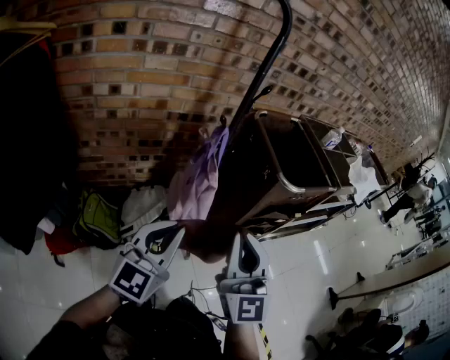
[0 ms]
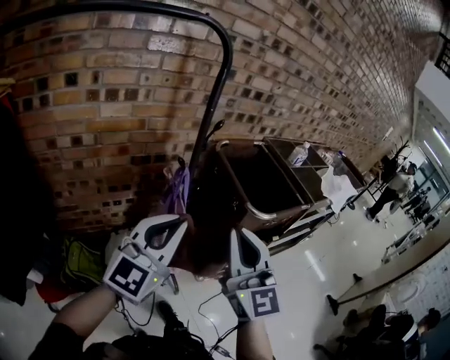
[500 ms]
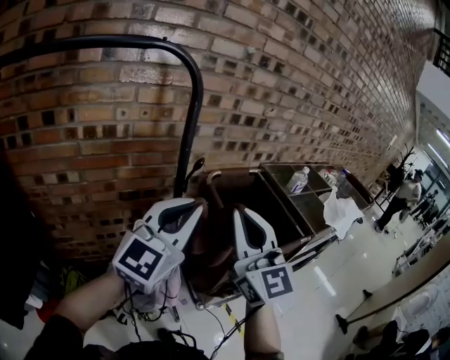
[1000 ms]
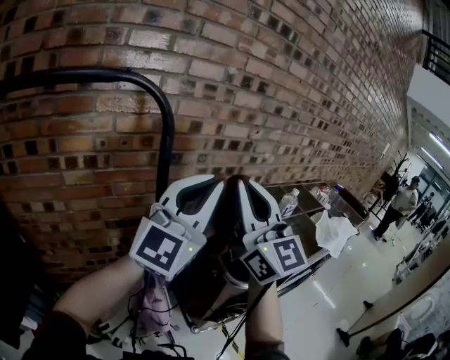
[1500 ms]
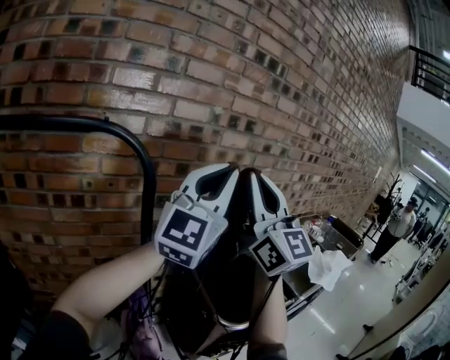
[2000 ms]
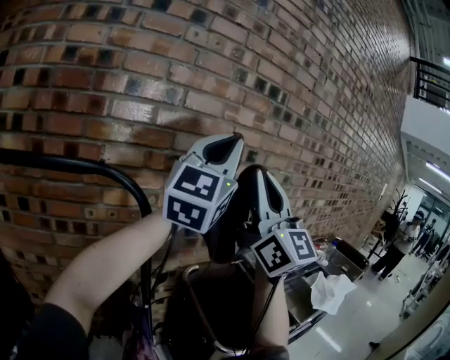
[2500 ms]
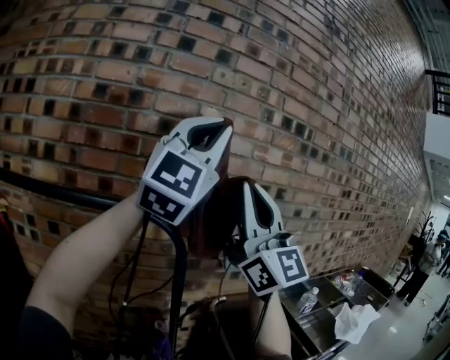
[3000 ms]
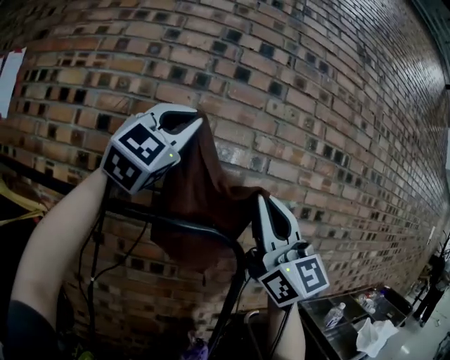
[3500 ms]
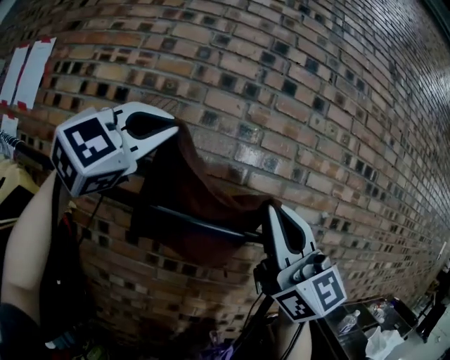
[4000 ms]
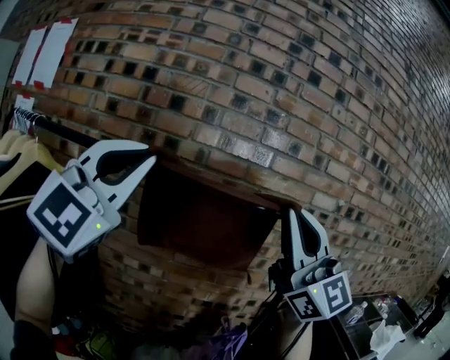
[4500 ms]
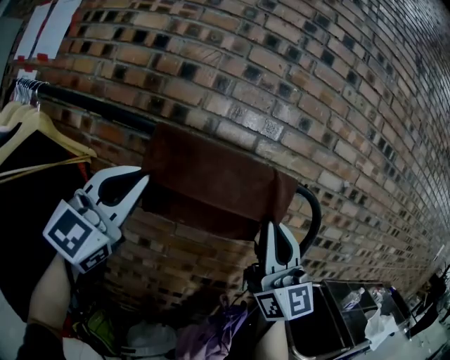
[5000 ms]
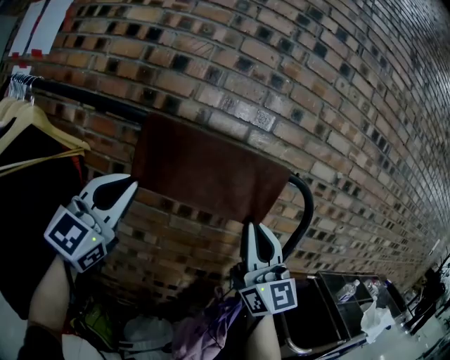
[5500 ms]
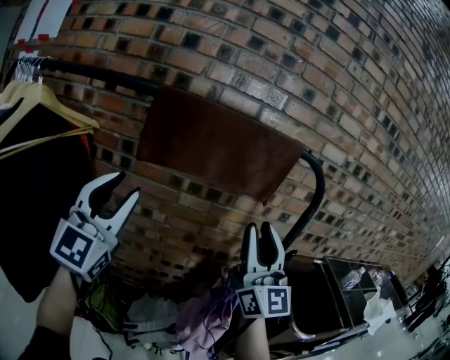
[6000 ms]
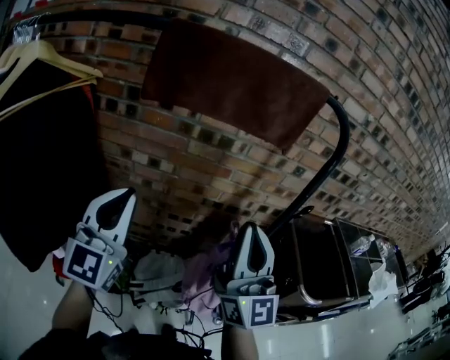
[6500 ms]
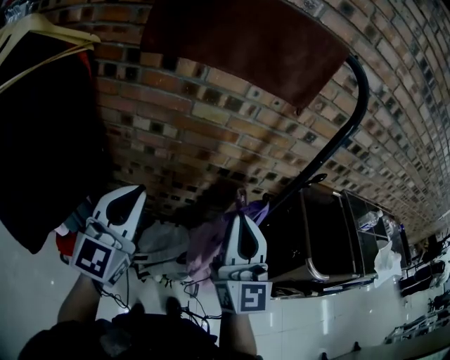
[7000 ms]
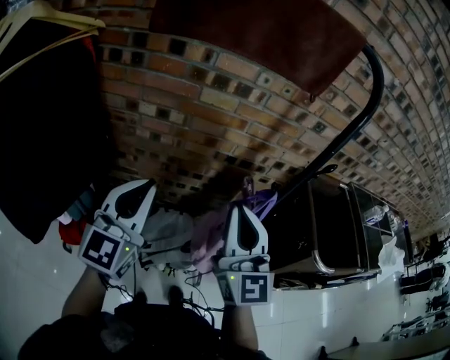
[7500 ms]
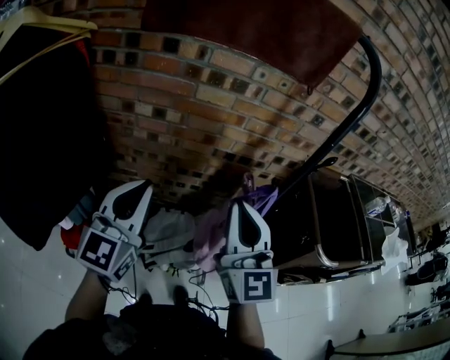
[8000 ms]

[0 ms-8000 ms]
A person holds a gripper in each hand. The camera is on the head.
0 ms to 2000 ms: The two grippers travel together, forward, about 40 cm. Both grippers move upward, some 40 cm. The left gripper swivels some 30 degrees. The right gripper swivels some 20 degrees.
2000 ms to 4000 ms: The right gripper moves about 35 cm, and changes its angle by some 30 degrees, while the left gripper changes place by roughly 50 cm, and rolls clockwise, seen from behind, by approximately 40 degrees.
4000 ms to 6000 ms: Both grippers move downward, about 30 cm. The left gripper swivels about 30 degrees, and opens up. Meanwhile the right gripper rotates roughly 20 degrees, and opens up.
6000 ms to 8000 ms: Both grippers travel together downward, about 20 cm. The right gripper changes its angle by roughly 20 degrees, and closes its fingers. The left gripper swivels some 20 degrees, and closes up.

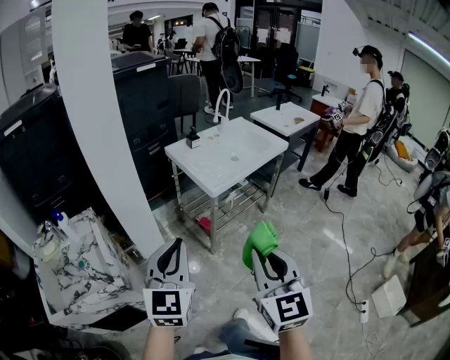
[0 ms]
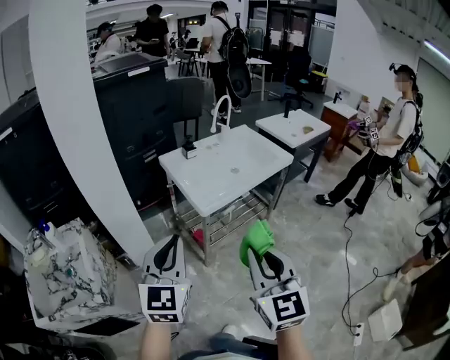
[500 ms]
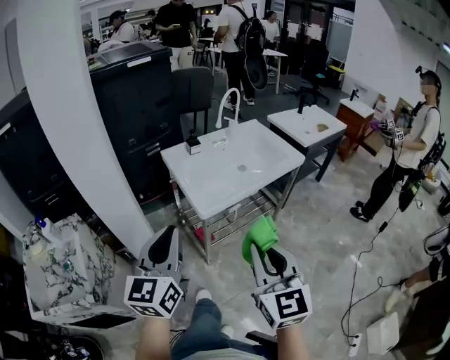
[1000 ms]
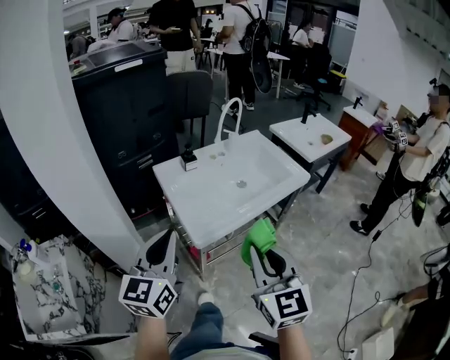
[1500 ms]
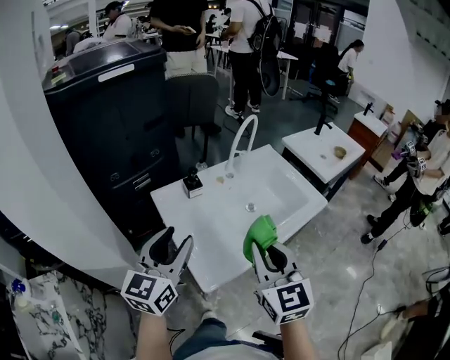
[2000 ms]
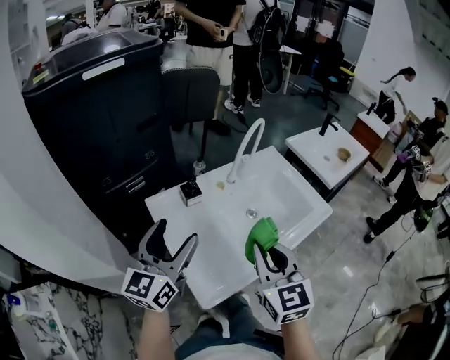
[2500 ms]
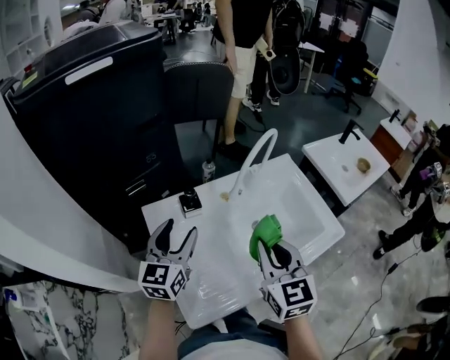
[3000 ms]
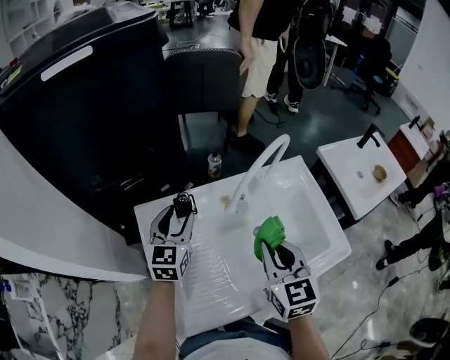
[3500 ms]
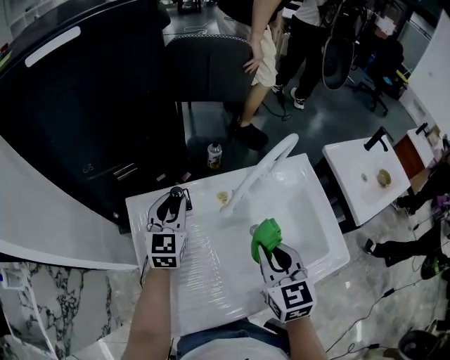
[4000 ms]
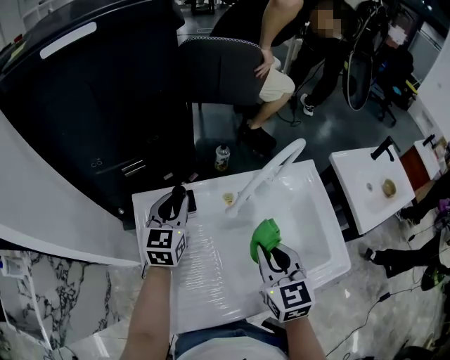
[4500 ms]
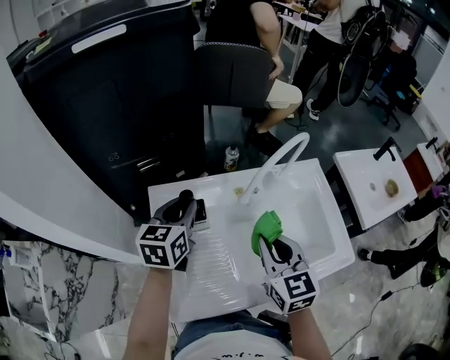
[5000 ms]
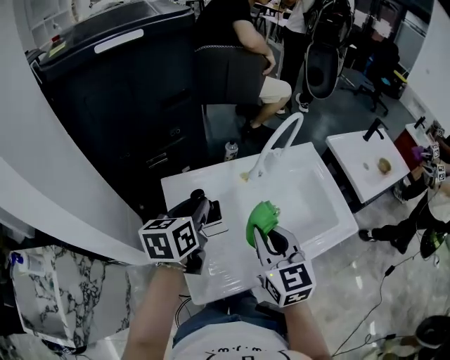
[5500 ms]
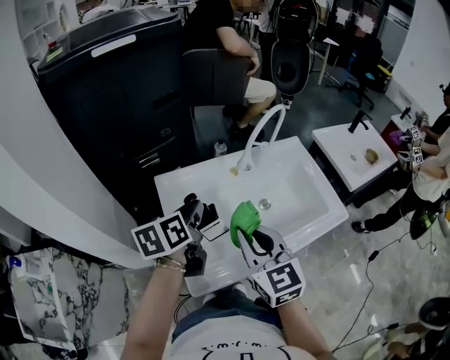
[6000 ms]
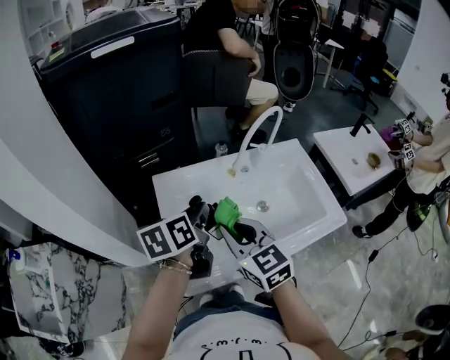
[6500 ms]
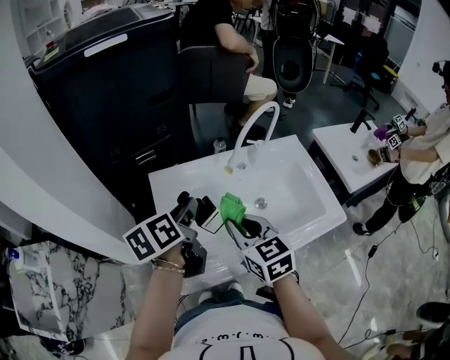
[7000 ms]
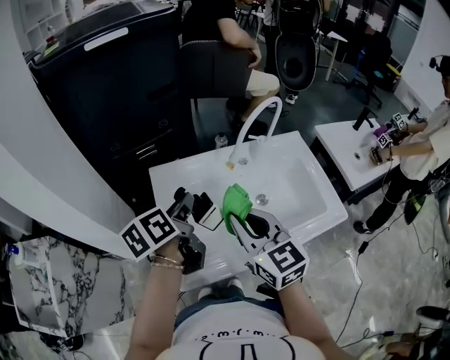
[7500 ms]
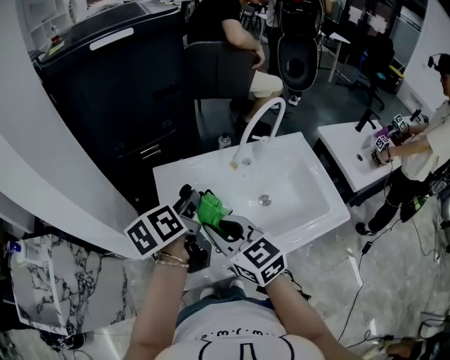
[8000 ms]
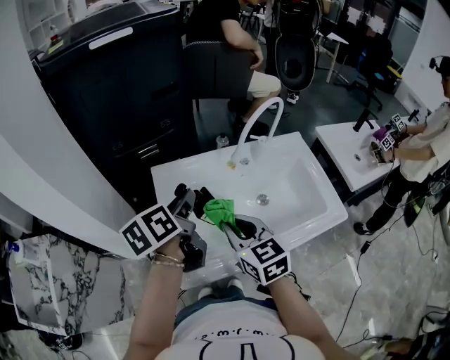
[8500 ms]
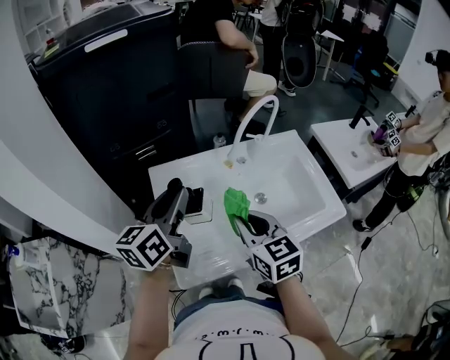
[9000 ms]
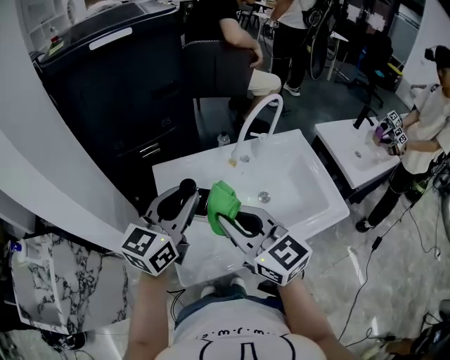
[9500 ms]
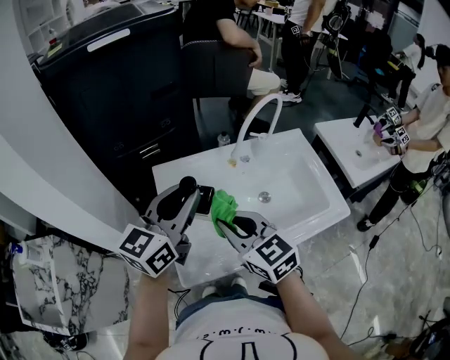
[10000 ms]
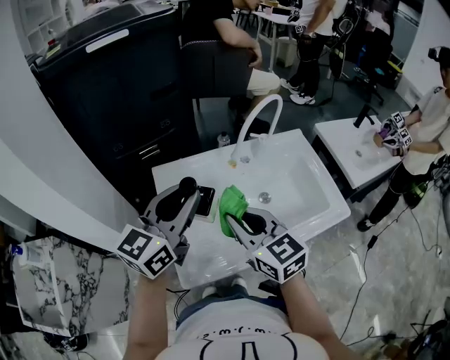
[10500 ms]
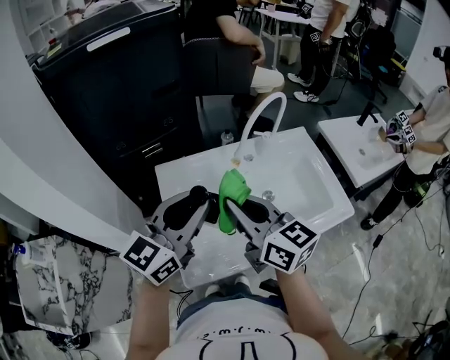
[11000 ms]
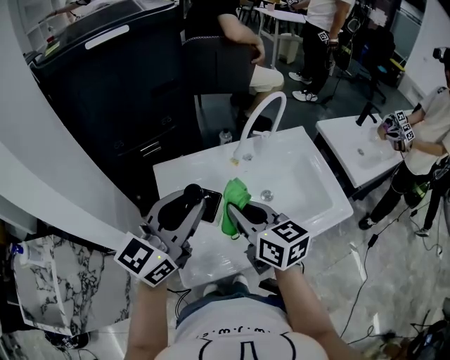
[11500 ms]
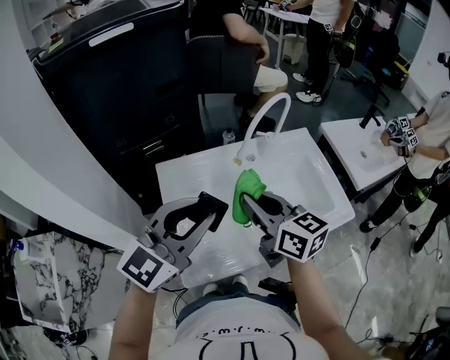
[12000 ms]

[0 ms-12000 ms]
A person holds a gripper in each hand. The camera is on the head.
0 ms to 2000 ms: The two grippers travel together, forward, roughly 50 cm. The left gripper opens up.
2000 ms to 4000 ms: The grippers both shift forward and downward by approximately 30 cm. The left gripper turns by roughly 30 degrees, and opens and closes again; the right gripper changes its angle by approximately 20 degrees.
4000 ms to 6000 ms: The left gripper heads backward and upward, covering about 20 cm, and rotates around the line of its fingers by some 40 degrees, counterclockwise from behind, while the right gripper heads to the left, backward and upward, covering some 20 cm.
6000 ms to 8000 ms: The right gripper is displaced to the left by about 5 cm, and swivels some 20 degrees.
8000 ms to 10000 ms: The left gripper moves upward, roughly 10 cm, and twists some 40 degrees clockwise, seen from behind. The right gripper goes upward and returns, some 5 cm each way.
10000 ms to 12000 ms: The left gripper shifts by some 5 cm, and swivels approximately 20 degrees. The right gripper travels forward and to the right by about 10 cm, and rotates roughly 20 degrees.

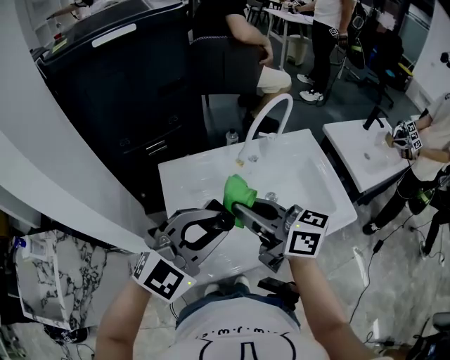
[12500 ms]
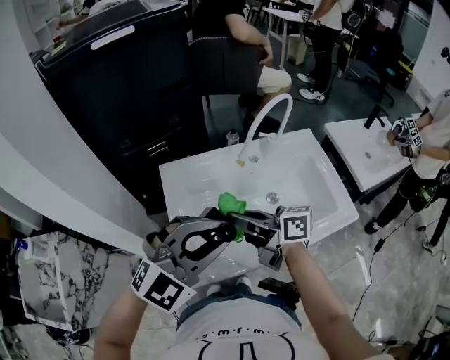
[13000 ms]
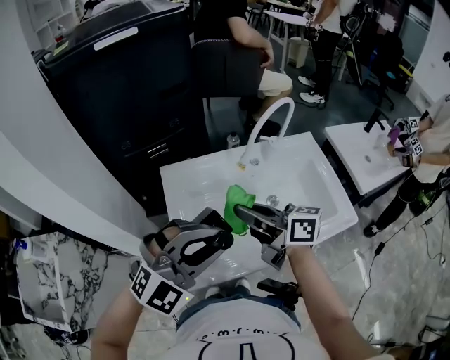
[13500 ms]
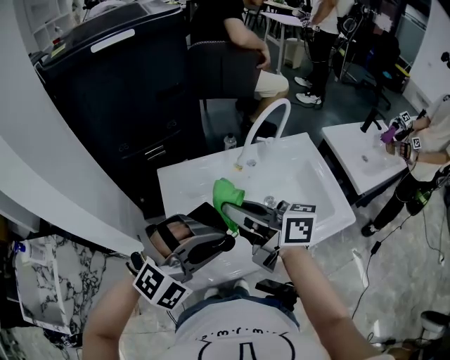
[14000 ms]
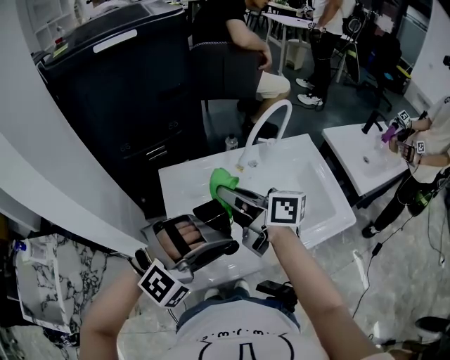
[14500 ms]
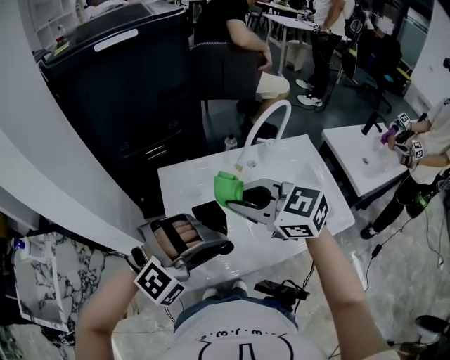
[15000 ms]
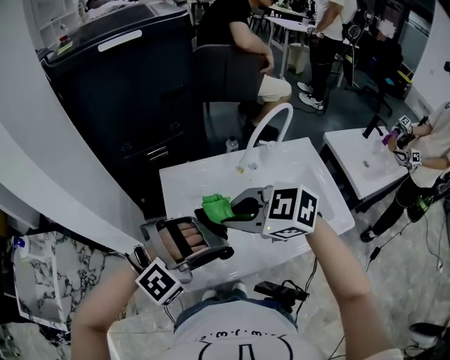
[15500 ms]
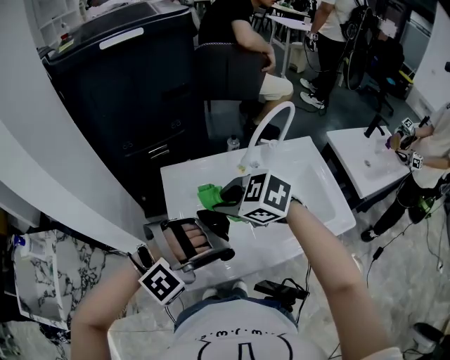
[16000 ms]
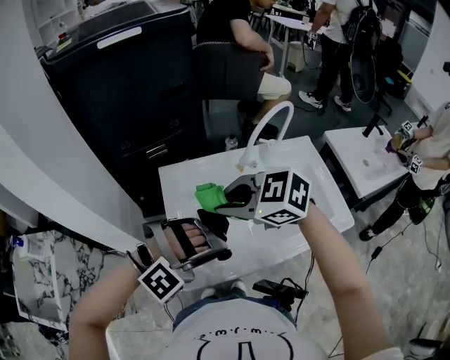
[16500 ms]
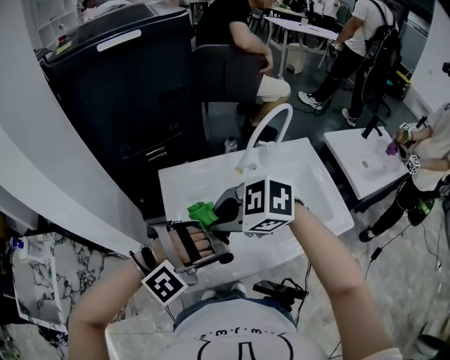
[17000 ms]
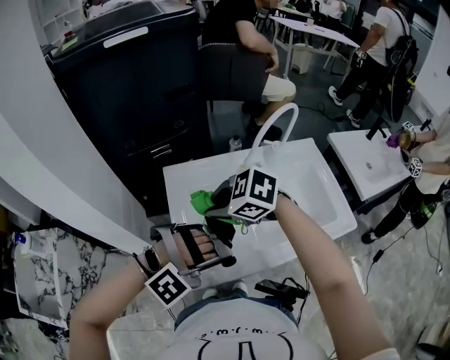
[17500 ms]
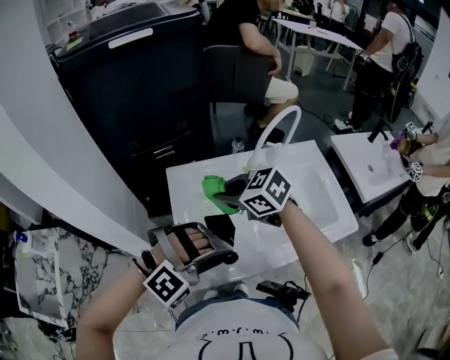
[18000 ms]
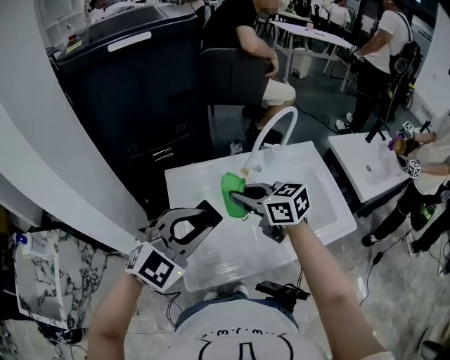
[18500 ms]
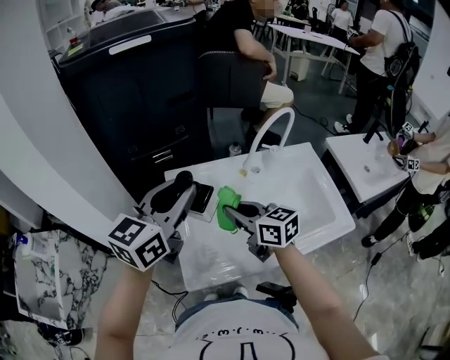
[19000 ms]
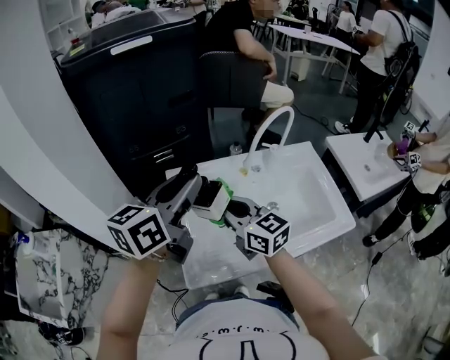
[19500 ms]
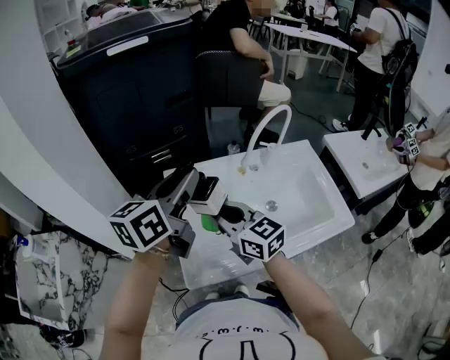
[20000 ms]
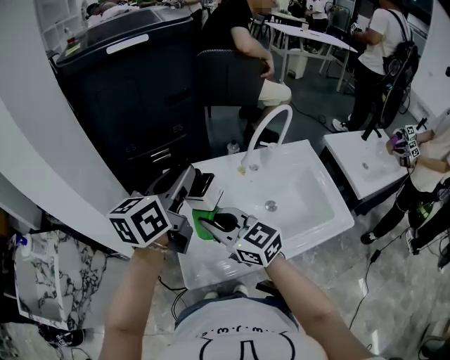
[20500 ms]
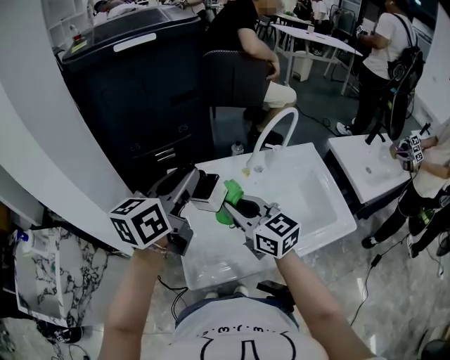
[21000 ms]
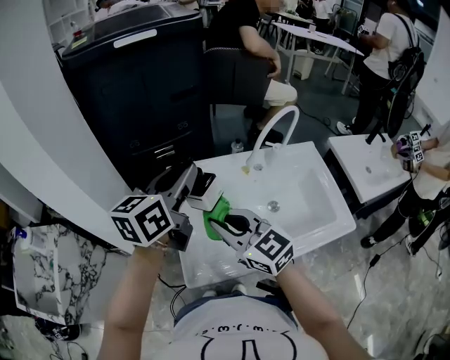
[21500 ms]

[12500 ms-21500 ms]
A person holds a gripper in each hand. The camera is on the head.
12500 ms to 14500 ms: The left gripper travels downward by about 5 cm, and twists roughly 40 degrees clockwise, seen from behind; the right gripper goes approximately 5 cm forward.
14500 ms to 17000 ms: The left gripper changes its angle by about 20 degrees; the right gripper ends up roughly 10 cm from where it was, and tilts its fingers some 50 degrees downward.
17000 ms to 19500 ms: The left gripper travels upward by some 15 cm, and rotates around the line of its fingers by roughly 120 degrees, counterclockwise from behind. The right gripper tips its fingers upward by approximately 40 degrees.
19500 ms to 21500 ms: The right gripper swings left and right, approximately 5 cm each way, with 2 reversals.
